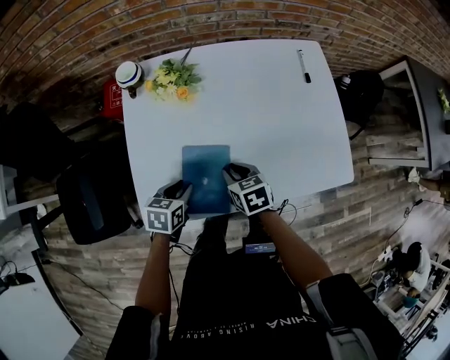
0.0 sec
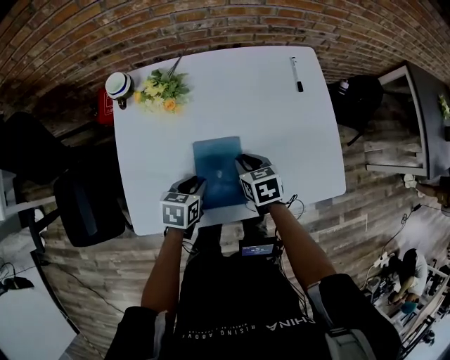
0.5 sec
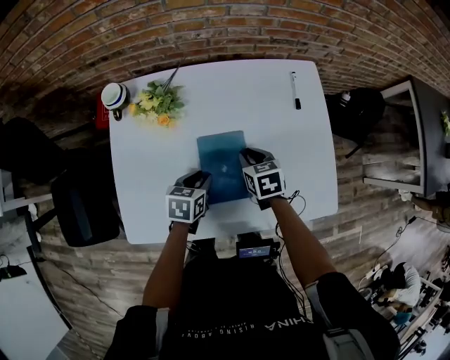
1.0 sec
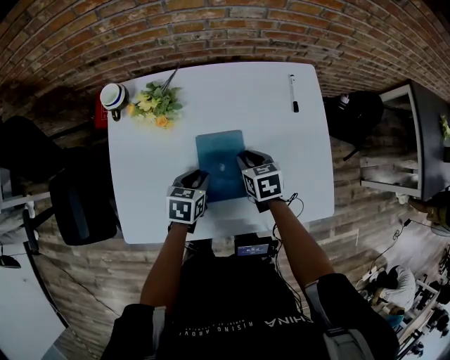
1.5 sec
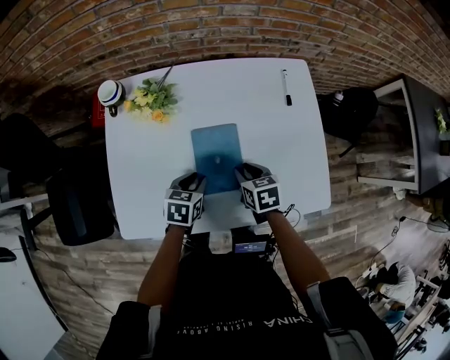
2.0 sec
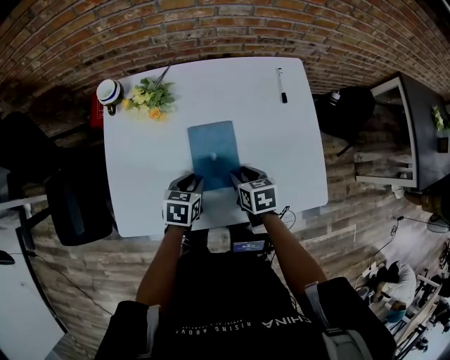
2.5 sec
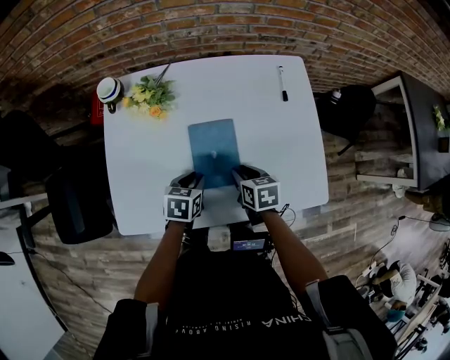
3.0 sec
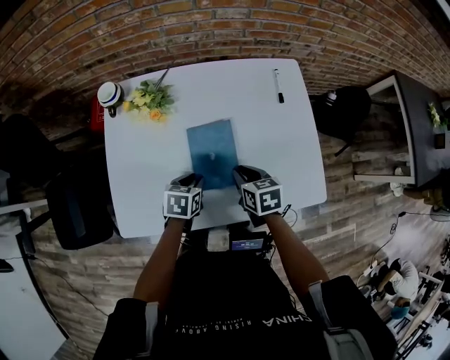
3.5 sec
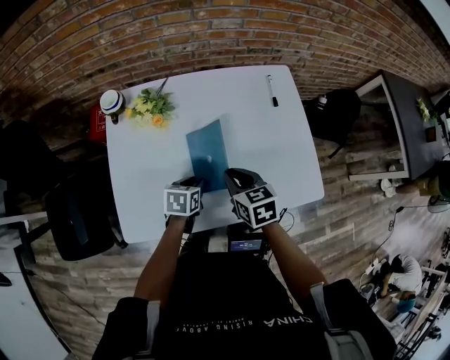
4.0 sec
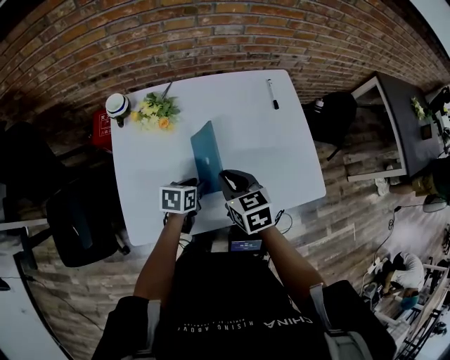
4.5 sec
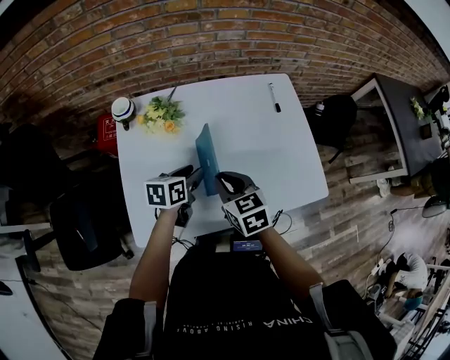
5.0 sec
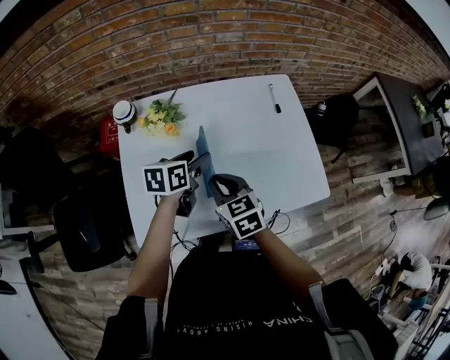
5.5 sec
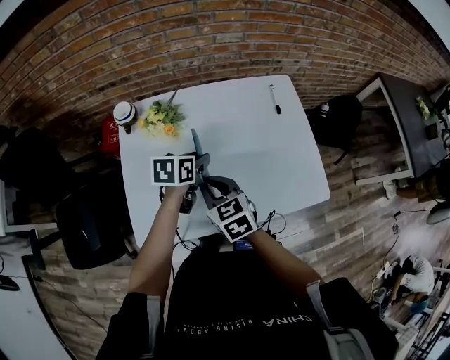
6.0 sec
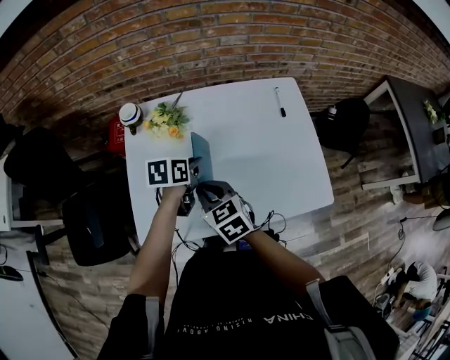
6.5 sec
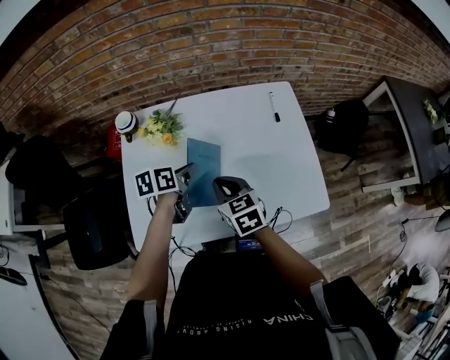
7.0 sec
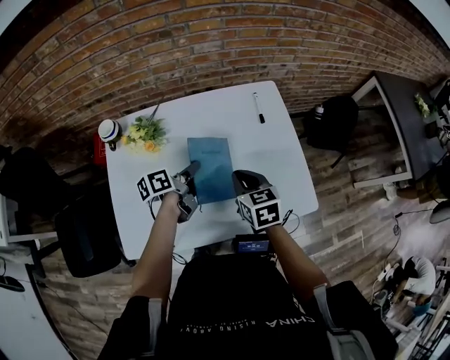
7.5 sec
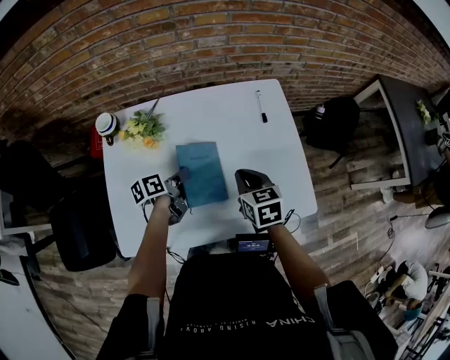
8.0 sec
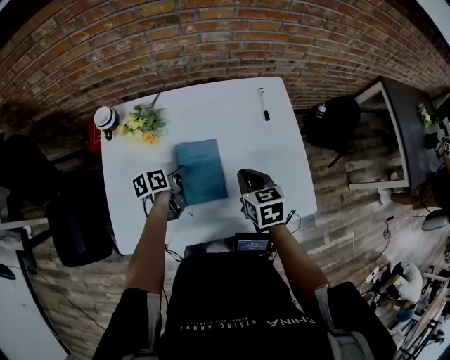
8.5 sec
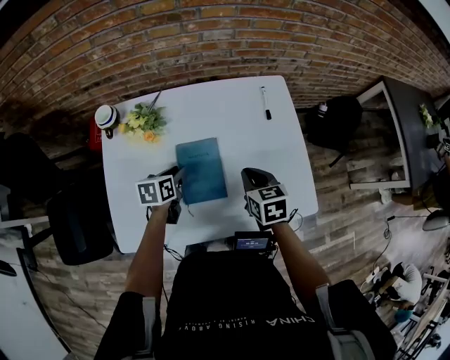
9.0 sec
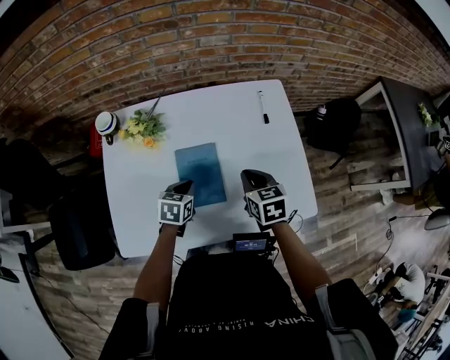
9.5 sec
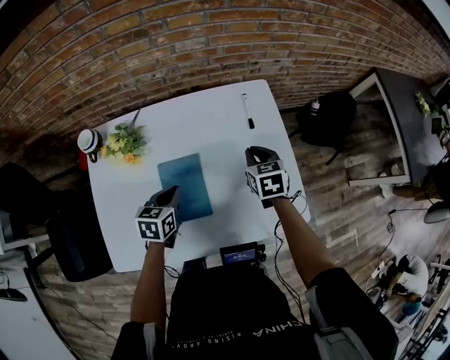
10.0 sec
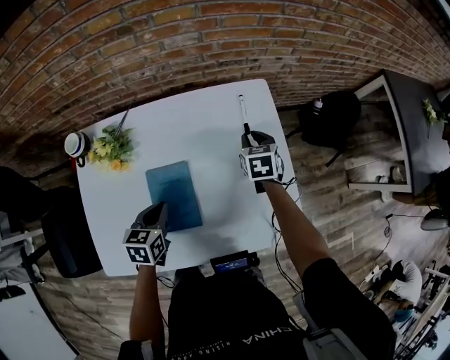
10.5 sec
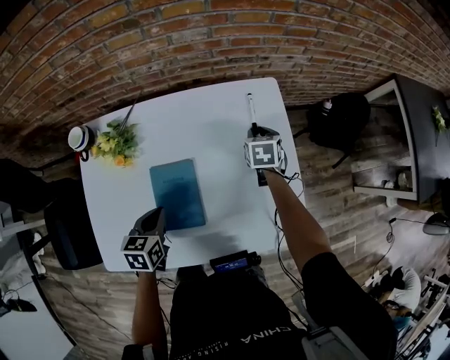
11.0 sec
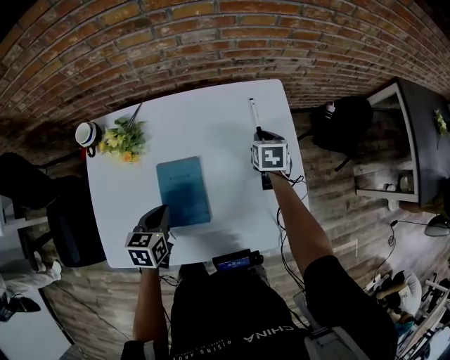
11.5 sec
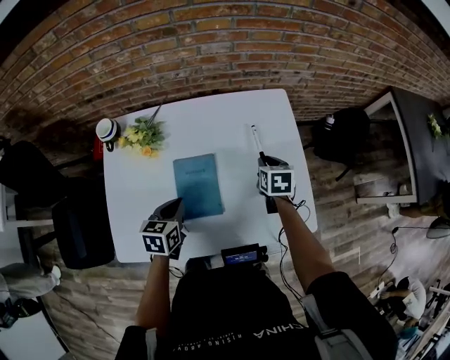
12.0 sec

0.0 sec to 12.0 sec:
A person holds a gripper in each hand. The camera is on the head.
0.0 sec to 2.0 sec: The two grippers go about 15 cm to the right and forward.
2.0 sec to 4.0 sec: The right gripper moves upward, some 10 cm.
4.0 sec to 6.0 sec: The left gripper moves upward and forward, about 15 cm, while the right gripper heads to the left and upward, covering about 10 cm.
6.0 sec to 8.0 sec: The right gripper shifts roughly 20 cm to the right and forward; the left gripper heads downward, covering some 10 cm, swivels approximately 40 degrees, and closes.
8.0 sec to 10.0 sec: The right gripper travels forward and to the right by about 15 cm. The left gripper rotates around the line of its fingers by approximately 40 degrees, clockwise from behind.
10.0 sec to 12.0 sec: The left gripper moves backward, roughly 5 cm, while the right gripper goes forward and returns, approximately 10 cm each way.

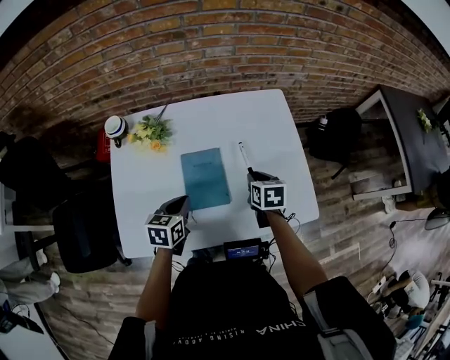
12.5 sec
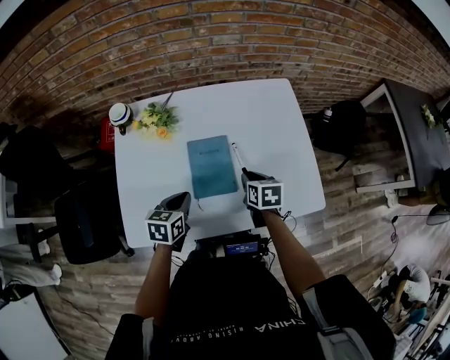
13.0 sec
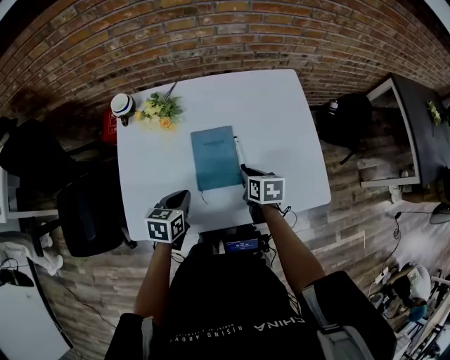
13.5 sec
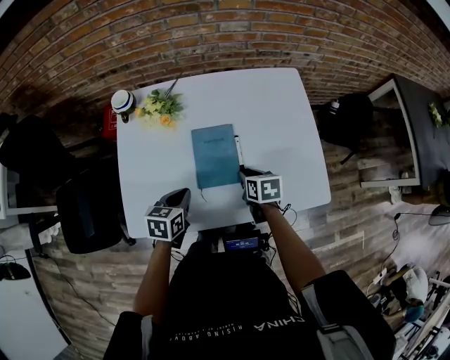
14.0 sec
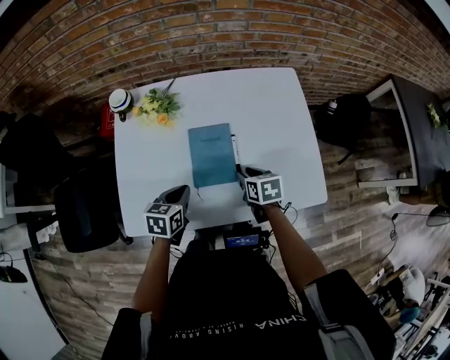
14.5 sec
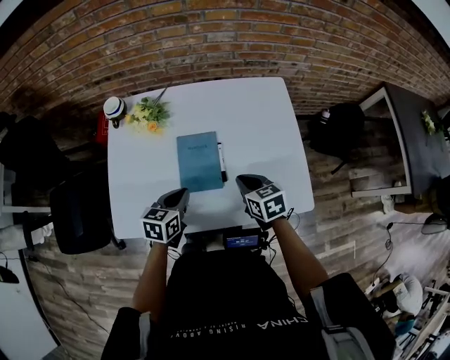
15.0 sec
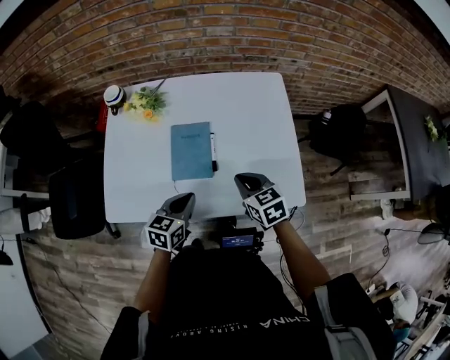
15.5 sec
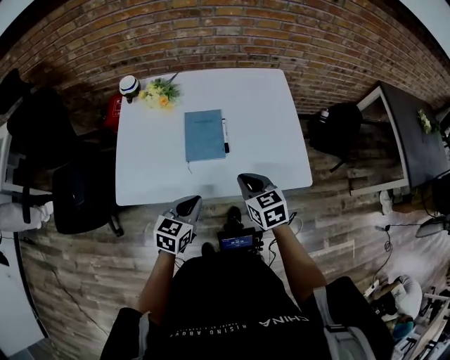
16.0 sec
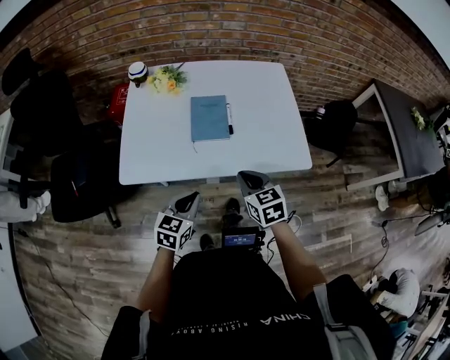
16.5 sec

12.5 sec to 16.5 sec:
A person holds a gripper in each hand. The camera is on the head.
12.5 sec to 14.5 sec: The right gripper goes approximately 10 cm to the left and backward. Meanwhile the left gripper moves approximately 5 cm.
14.5 sec to 16.5 sec: The left gripper shifts some 25 cm backward, and swivels some 20 degrees; the right gripper is displaced backward and upward by about 25 cm, rotates roughly 30 degrees, and closes its fingers.

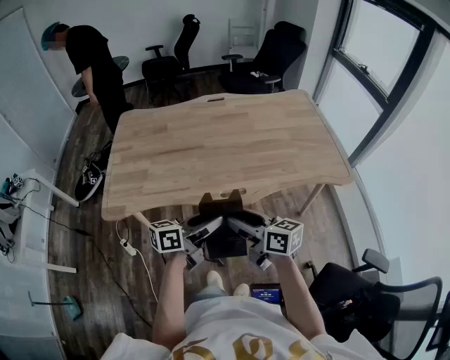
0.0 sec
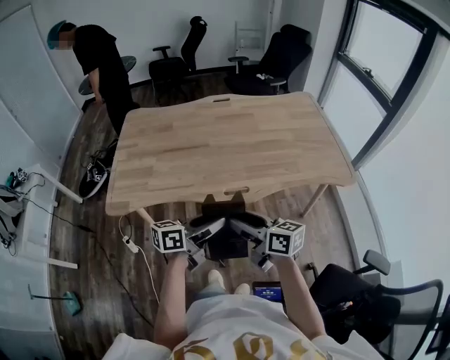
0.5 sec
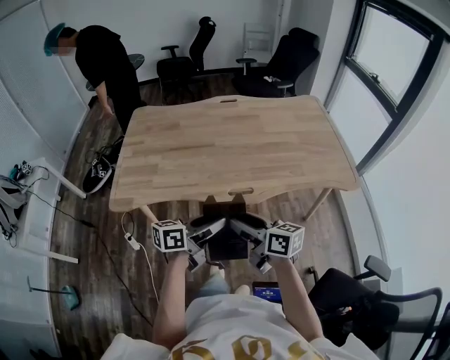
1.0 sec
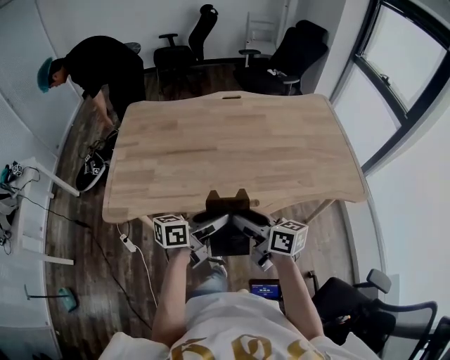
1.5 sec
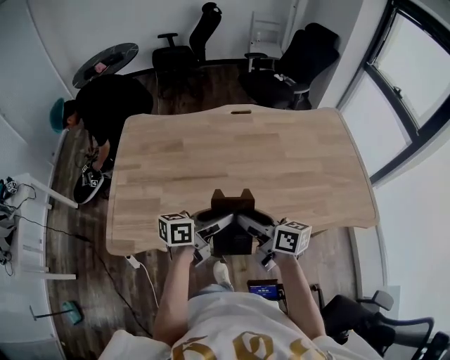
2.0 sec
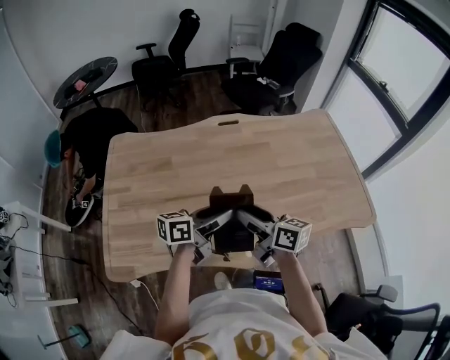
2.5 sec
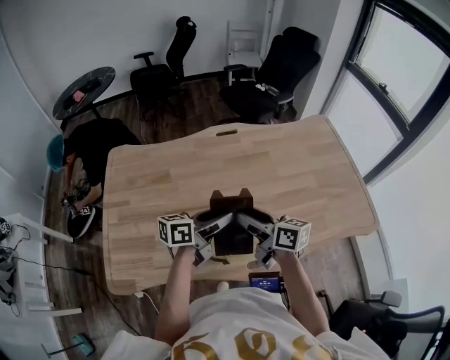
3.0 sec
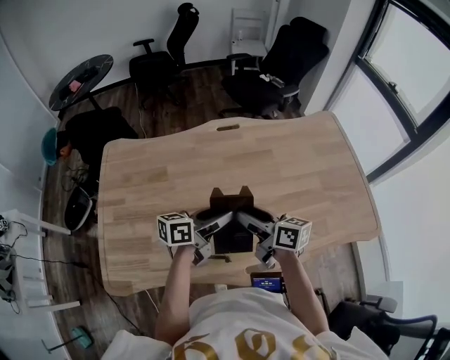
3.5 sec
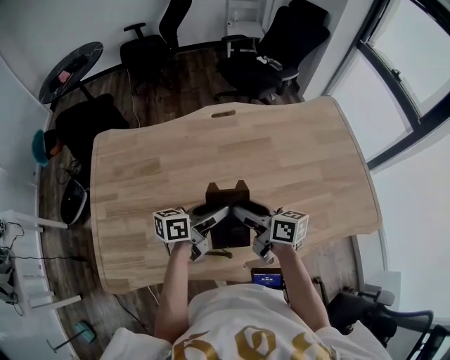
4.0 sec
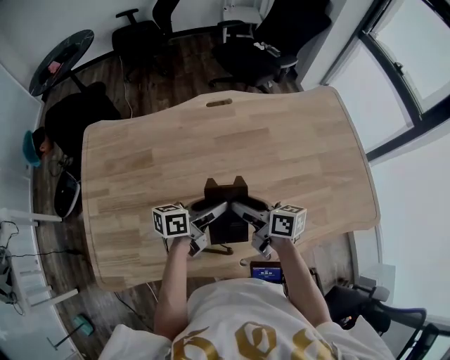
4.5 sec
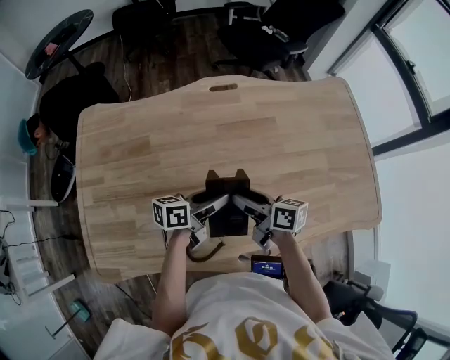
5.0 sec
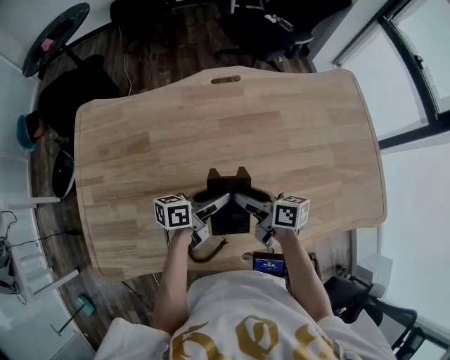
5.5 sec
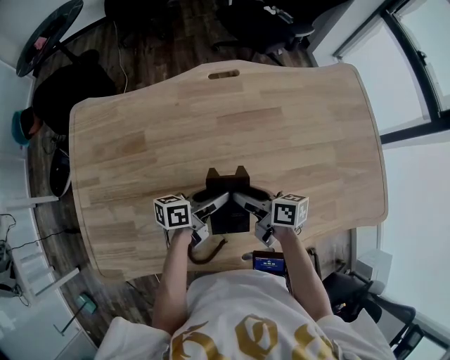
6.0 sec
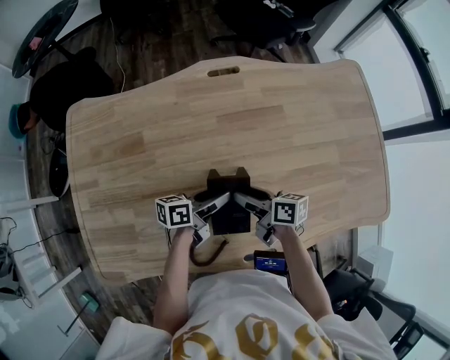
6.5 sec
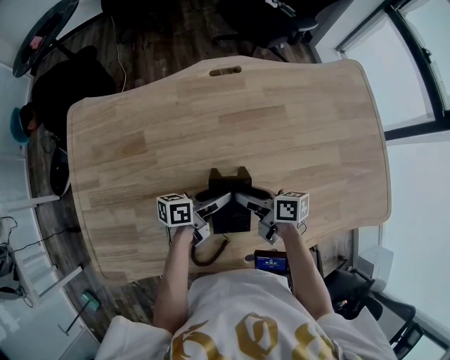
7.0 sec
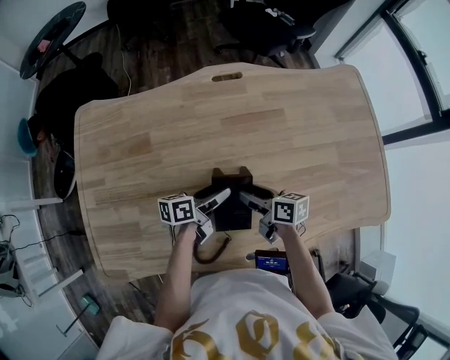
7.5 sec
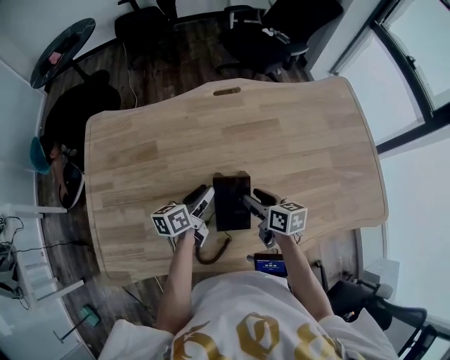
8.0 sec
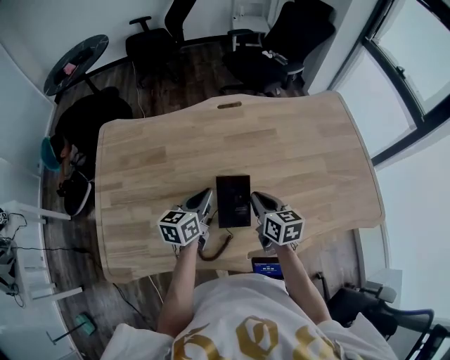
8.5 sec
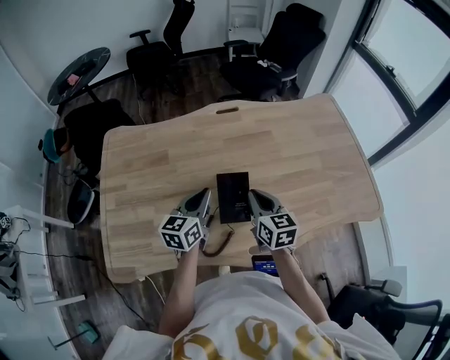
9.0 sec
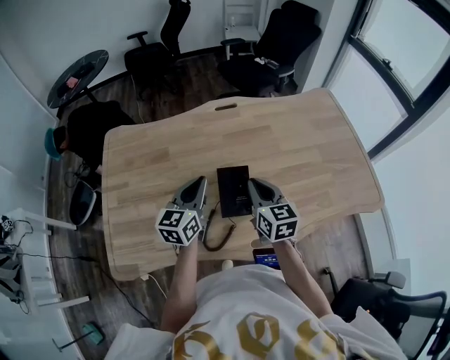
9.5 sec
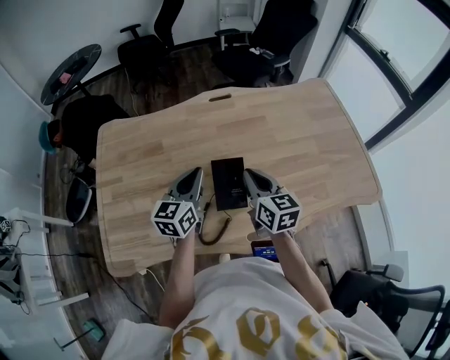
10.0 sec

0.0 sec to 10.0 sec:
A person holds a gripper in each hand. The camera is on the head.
0.0 sec to 2.0 sec: Both grippers travel together forward, about 25 cm.
2.0 sec to 4.0 sec: The grippers both shift forward by some 20 cm.
4.0 sec to 6.0 sec: The grippers both shift downward by some 10 cm.
6.0 sec to 8.0 sec: The right gripper turns by about 20 degrees, while the left gripper shifts about 5 cm to the left, and turns by roughly 20 degrees.
8.0 sec to 10.0 sec: The left gripper heads upward and backward, covering approximately 15 cm, changes its angle by approximately 40 degrees, and closes. The right gripper heads upward, covering some 15 cm, swivels roughly 30 degrees, and closes up.

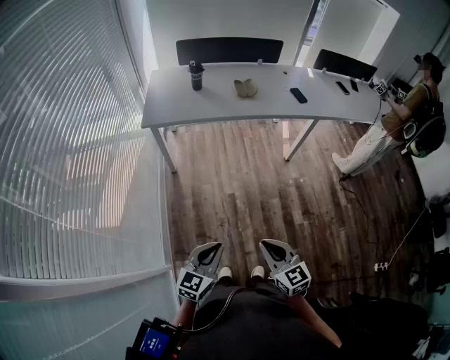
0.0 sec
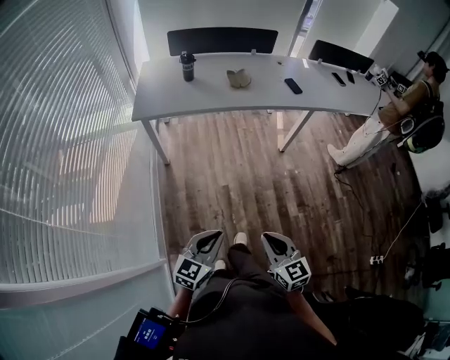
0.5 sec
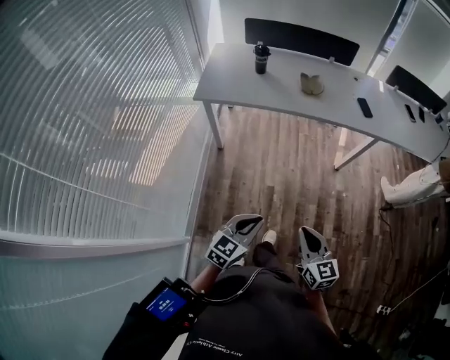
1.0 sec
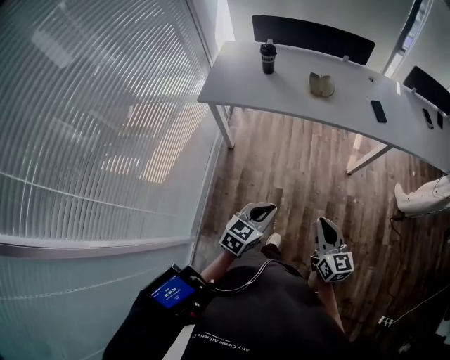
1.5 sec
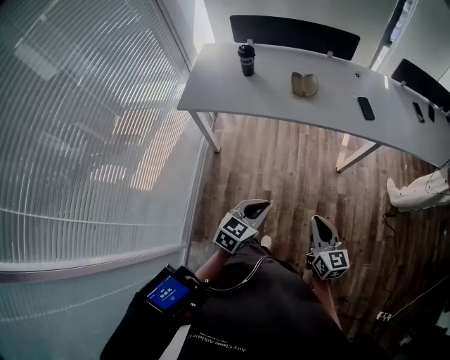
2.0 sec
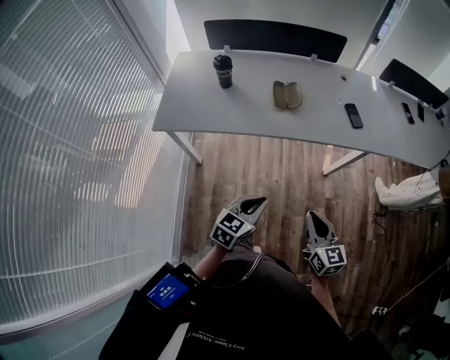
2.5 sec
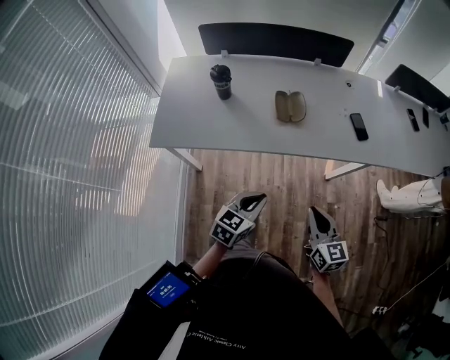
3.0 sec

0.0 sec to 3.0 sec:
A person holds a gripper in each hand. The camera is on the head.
0.0 sec to 1.5 sec: The two grippers go approximately 25 cm forward and to the right.
1.5 sec to 3.0 sec: Both grippers move forward, approximately 30 cm.
